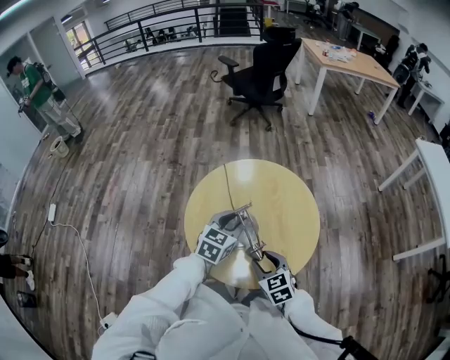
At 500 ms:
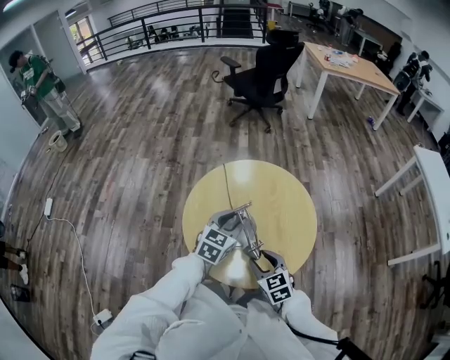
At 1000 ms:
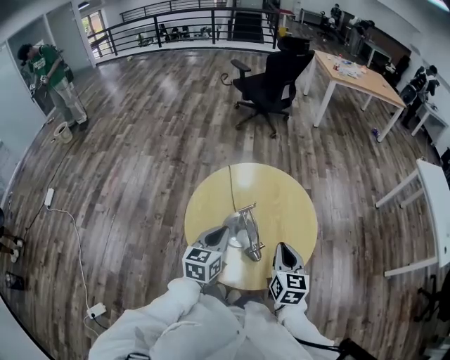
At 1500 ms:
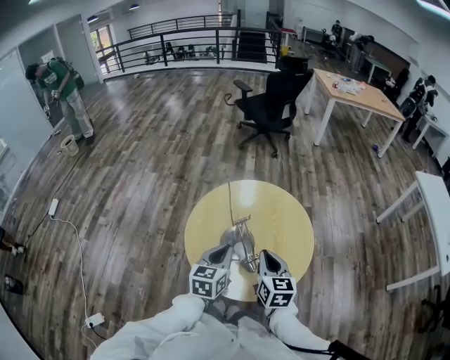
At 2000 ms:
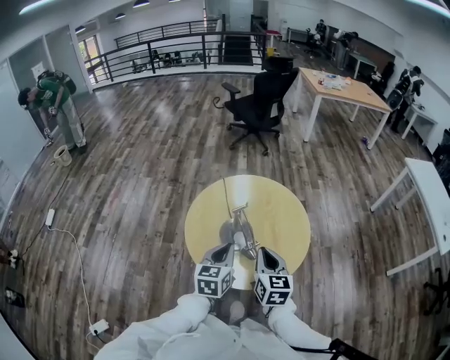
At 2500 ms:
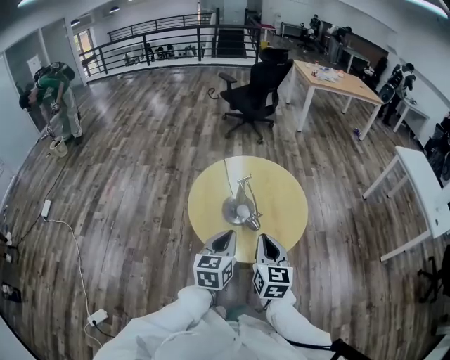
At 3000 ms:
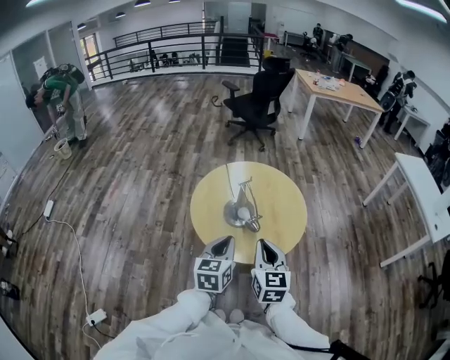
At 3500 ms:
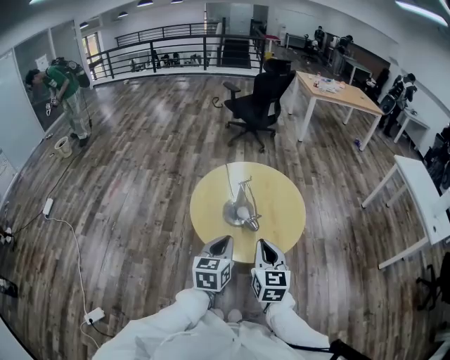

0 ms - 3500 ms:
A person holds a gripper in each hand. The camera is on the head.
0 ms - 2000 ms: The left gripper heads backward, covering approximately 15 cm, changes its angle by some 20 degrees, and closes its fingers. The right gripper travels upward by roughly 10 cm, swivels about 30 degrees, and closes its fingers.
2000 ms - 3500 ms: The two grippers go about 15 cm backward.

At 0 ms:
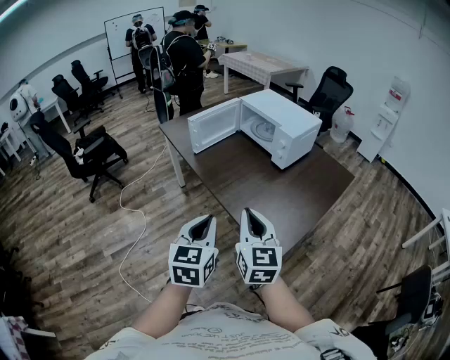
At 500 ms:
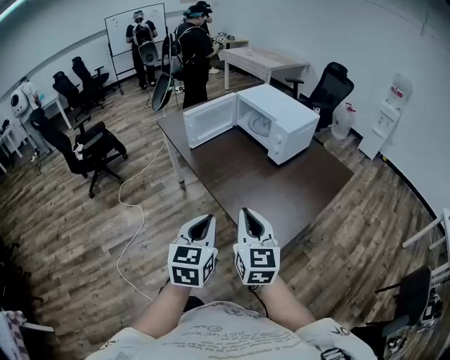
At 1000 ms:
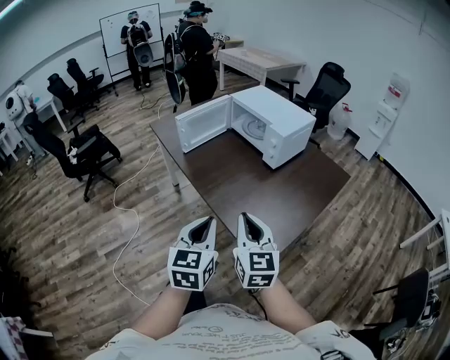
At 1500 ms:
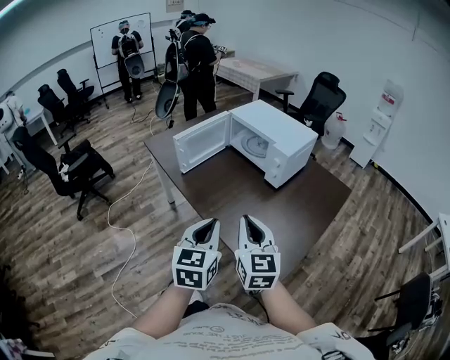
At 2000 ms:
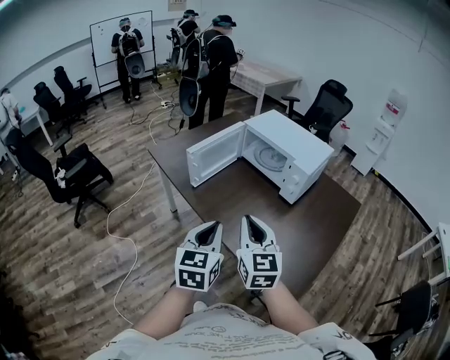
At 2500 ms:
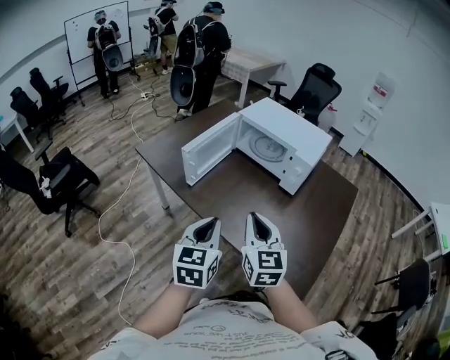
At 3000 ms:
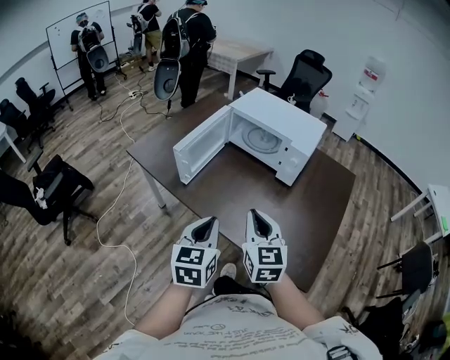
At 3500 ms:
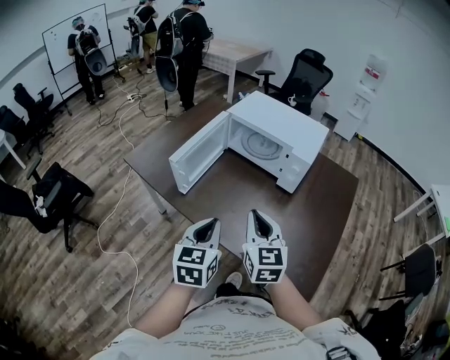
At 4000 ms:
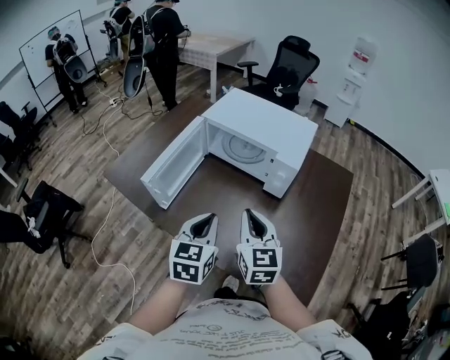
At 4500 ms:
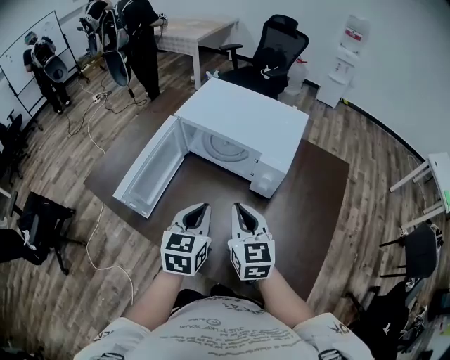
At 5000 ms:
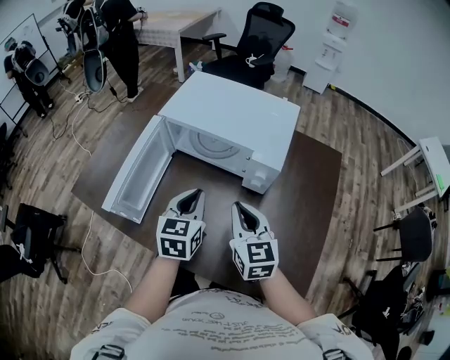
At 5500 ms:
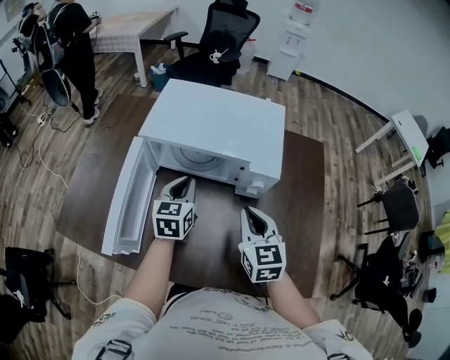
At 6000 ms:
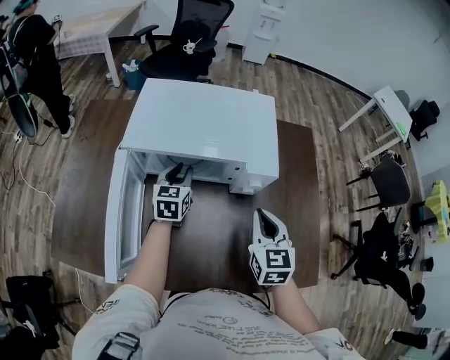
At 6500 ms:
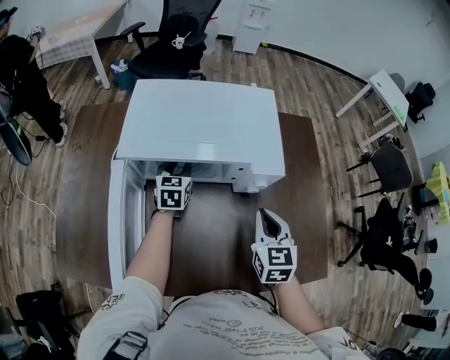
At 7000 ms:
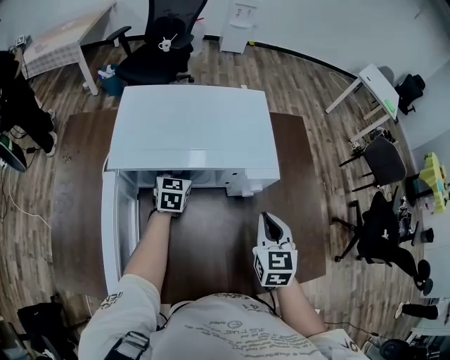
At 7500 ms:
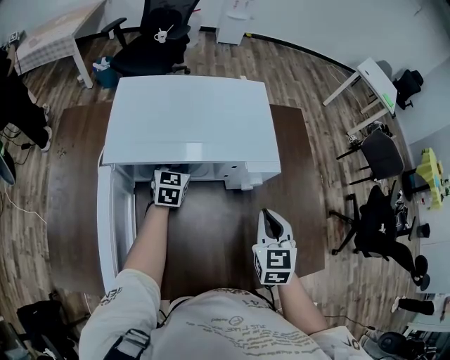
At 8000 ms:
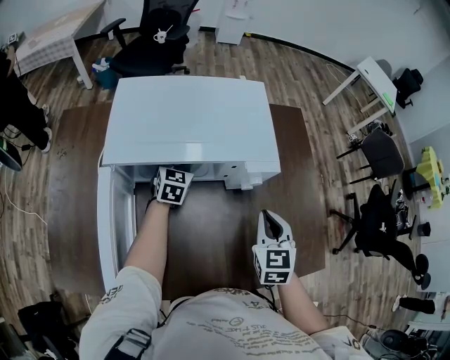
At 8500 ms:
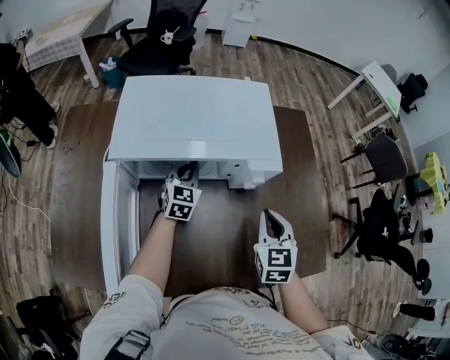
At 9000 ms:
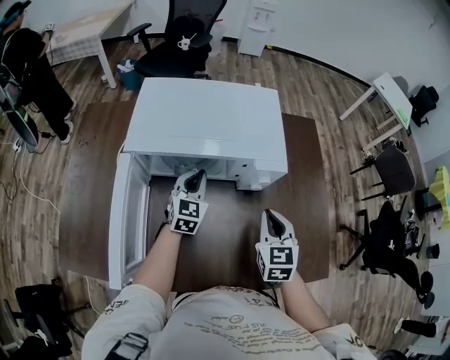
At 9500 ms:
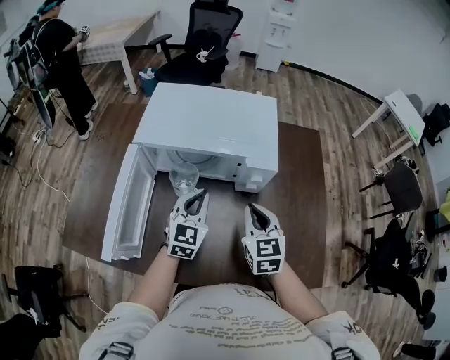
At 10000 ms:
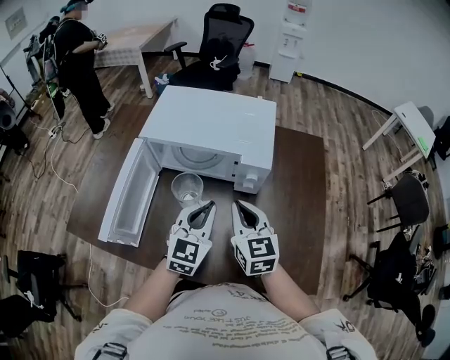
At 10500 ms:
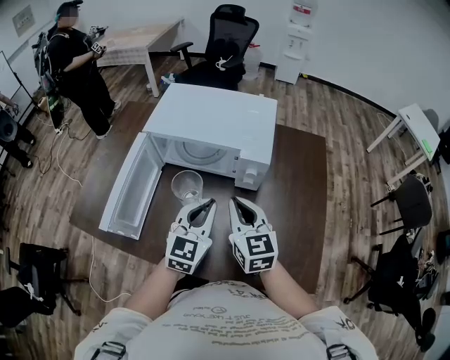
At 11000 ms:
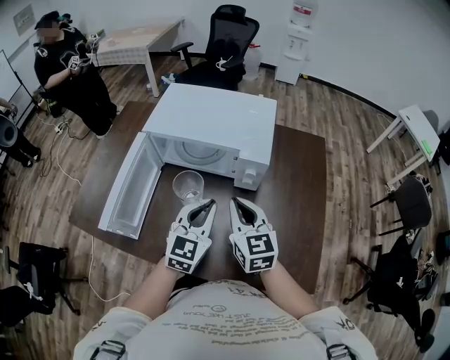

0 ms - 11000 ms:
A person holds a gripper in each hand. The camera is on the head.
0 ms - 2000 ms: The right gripper shifts approximately 20 cm forward and to the left. The left gripper shifts about 20 cm forward.
2000 ms - 3500 ms: The two grippers go about 10 cm forward.
3500 ms - 5500 ms: The right gripper heads forward, covering roughly 20 cm, and changes its angle by roughly 20 degrees. Meanwhile the left gripper heads forward, covering some 40 cm, and swivels some 20 degrees.
5500 ms - 7500 ms: The right gripper changes place by about 5 cm, and turns by about 30 degrees; the left gripper moves forward and downward, about 20 cm.
7500 ms - 9000 ms: The left gripper is displaced backward by approximately 10 cm.
9000 ms - 11000 ms: The right gripper travels upward by approximately 5 cm, and changes its angle by some 30 degrees, while the left gripper goes some 25 cm backward, upward and to the right.

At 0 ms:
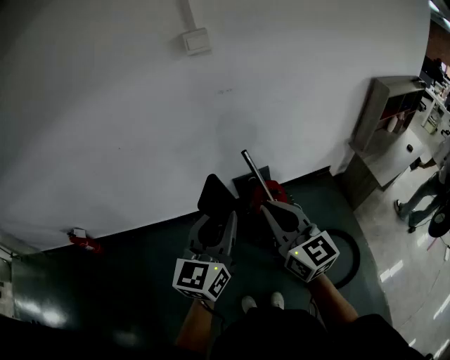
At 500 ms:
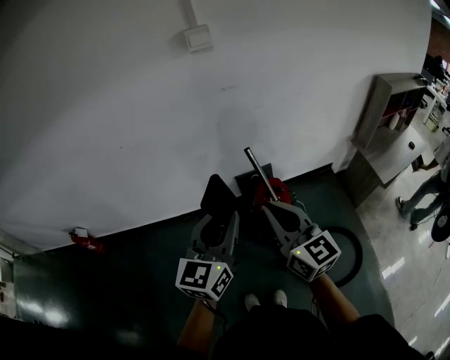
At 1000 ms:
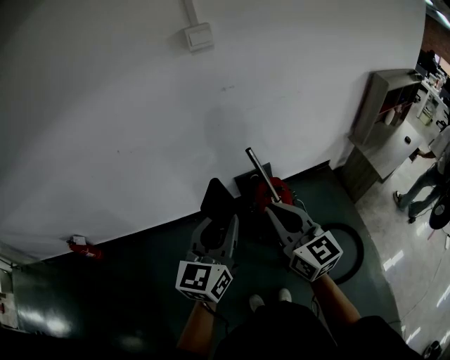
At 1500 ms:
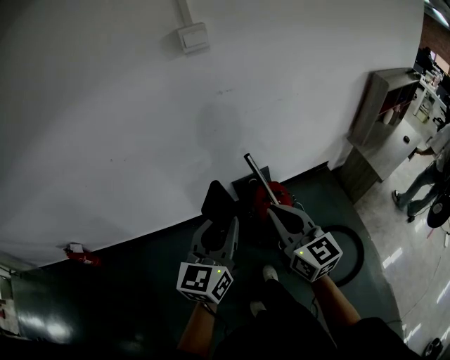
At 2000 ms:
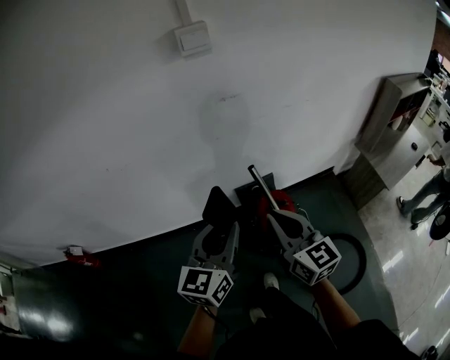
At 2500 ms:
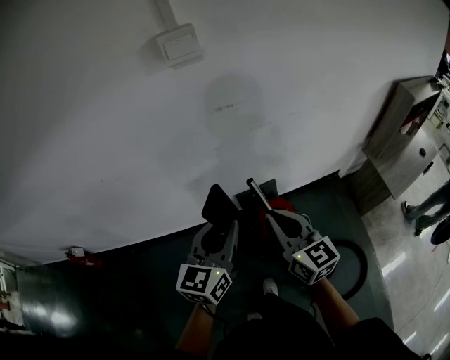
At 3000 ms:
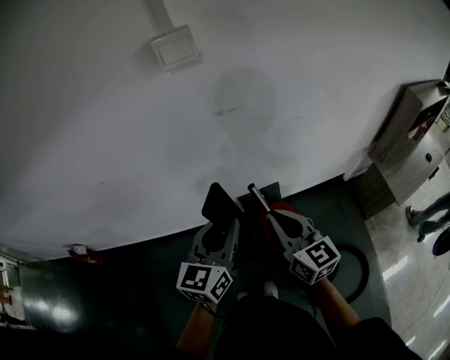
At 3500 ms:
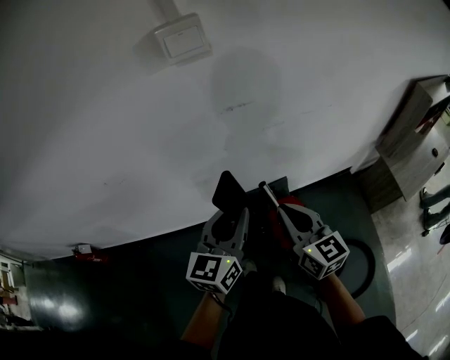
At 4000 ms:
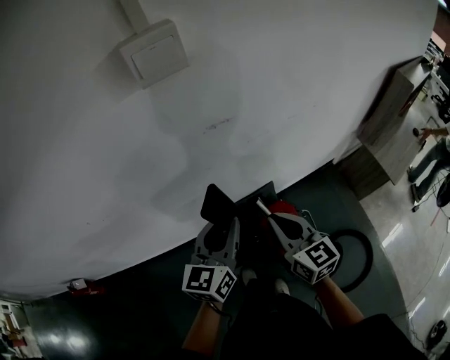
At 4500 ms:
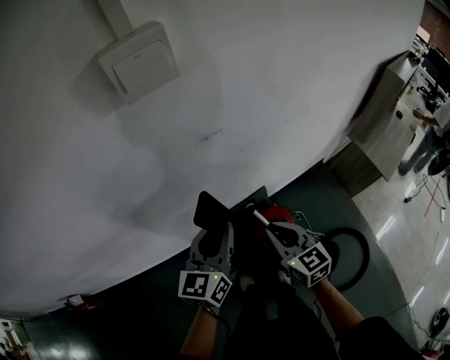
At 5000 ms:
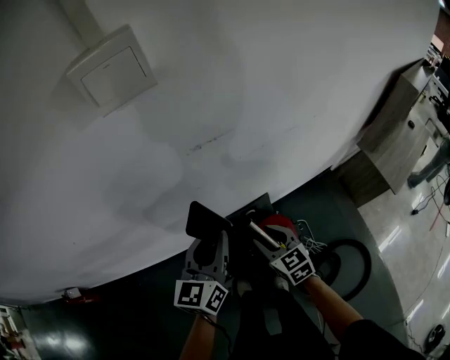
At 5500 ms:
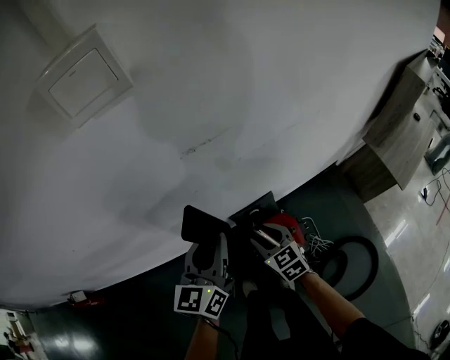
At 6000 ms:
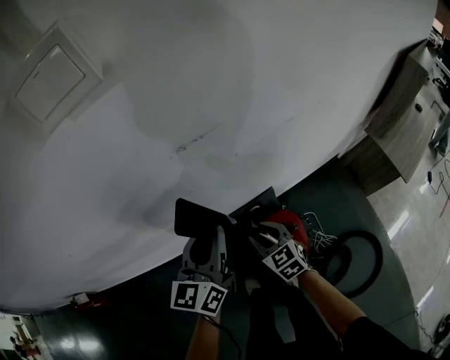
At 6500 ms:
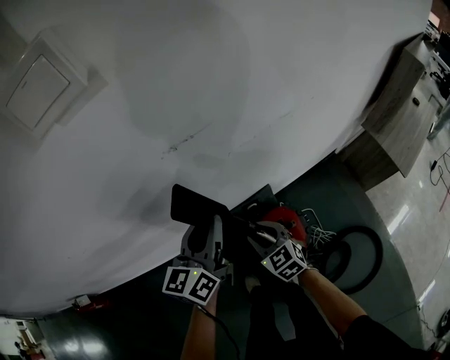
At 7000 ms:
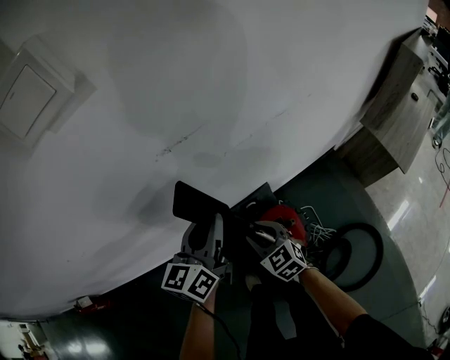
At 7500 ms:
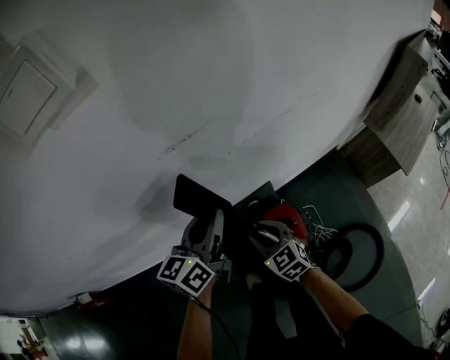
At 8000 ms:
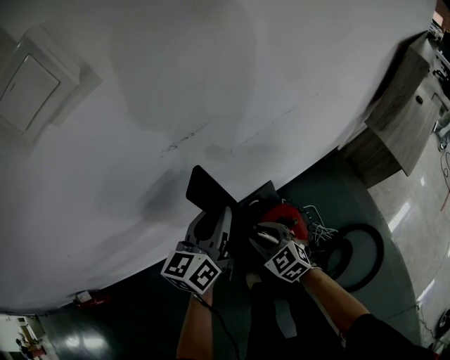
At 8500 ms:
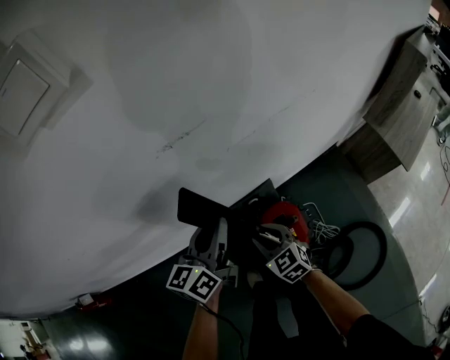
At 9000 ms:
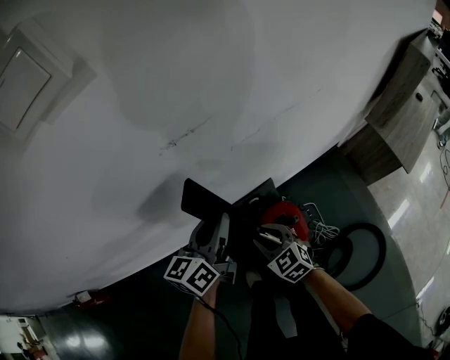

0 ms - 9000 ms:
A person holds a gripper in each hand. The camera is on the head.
0 ms - 2000 ms: The two grippers go some 15 cm forward and downward.
2000 ms - 4500 ms: The right gripper moves forward and downward, roughly 25 cm; the left gripper heads forward, covering some 25 cm.
4500 ms - 7000 ms: The right gripper moves downward, approximately 15 cm, turns by about 20 degrees, and opens, while the left gripper shifts some 10 cm forward and downward.
7000 ms - 9000 ms: There are only small adjustments of the grippers.

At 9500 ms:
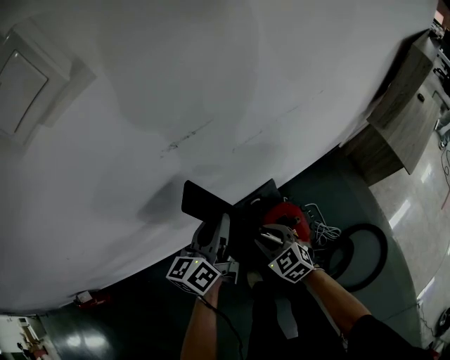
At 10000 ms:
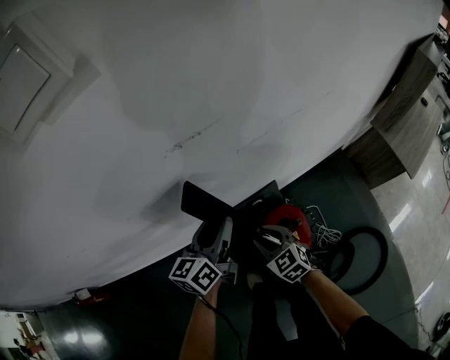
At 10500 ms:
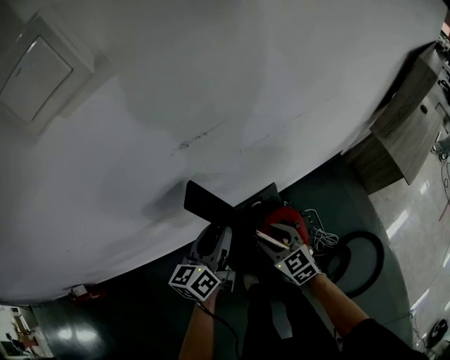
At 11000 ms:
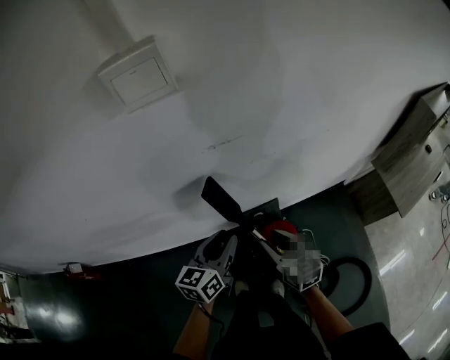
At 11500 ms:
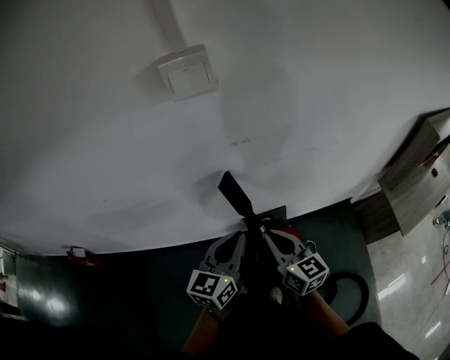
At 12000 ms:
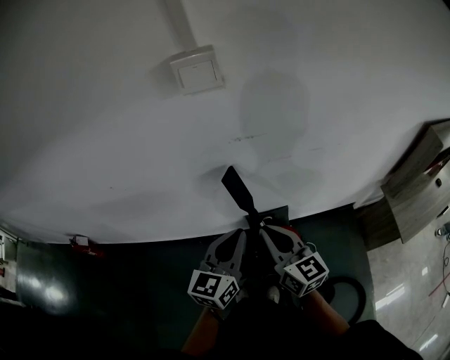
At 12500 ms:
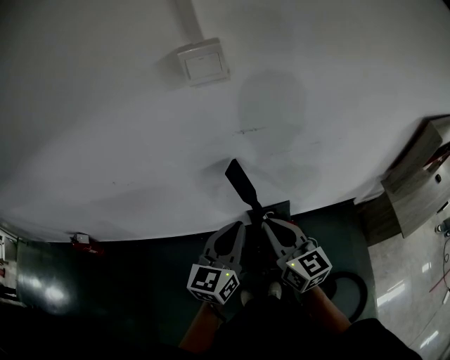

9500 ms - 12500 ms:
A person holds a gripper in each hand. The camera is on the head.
9500 ms - 11000 ms: The right gripper shifts about 15 cm upward, and turns by about 30 degrees. The left gripper shifts roughly 10 cm backward and upward.
11000 ms - 12500 ms: The left gripper moves upward and backward, approximately 15 cm, and closes. Meanwhile the right gripper is displaced upward by approximately 15 cm, and closes.
